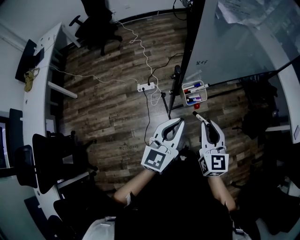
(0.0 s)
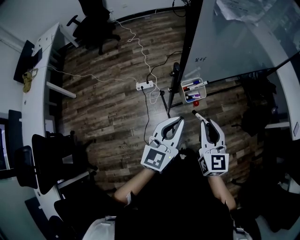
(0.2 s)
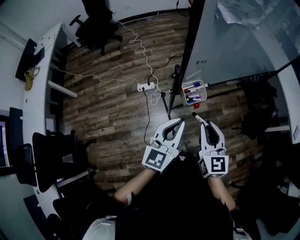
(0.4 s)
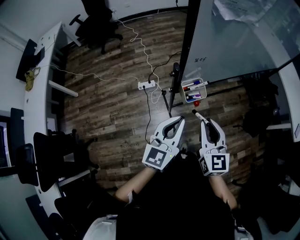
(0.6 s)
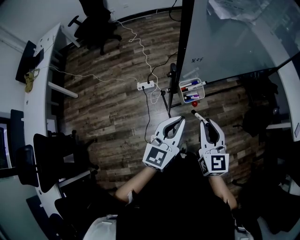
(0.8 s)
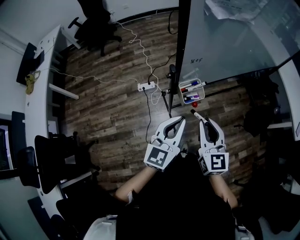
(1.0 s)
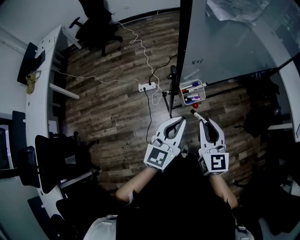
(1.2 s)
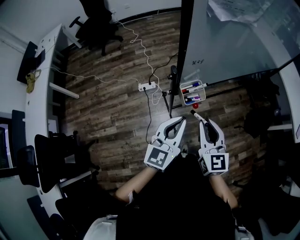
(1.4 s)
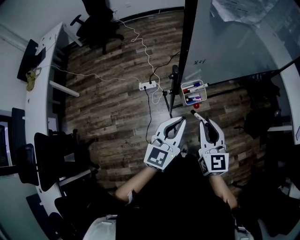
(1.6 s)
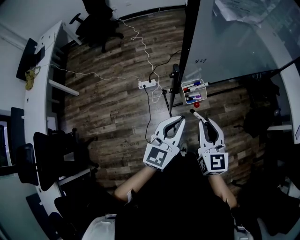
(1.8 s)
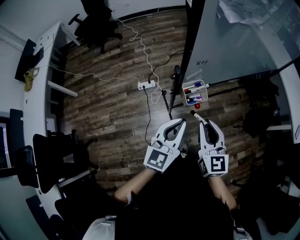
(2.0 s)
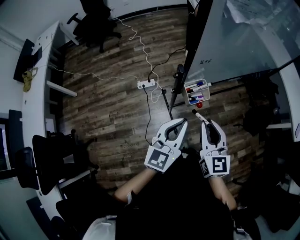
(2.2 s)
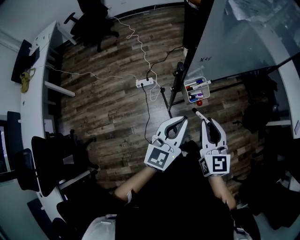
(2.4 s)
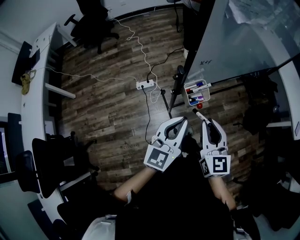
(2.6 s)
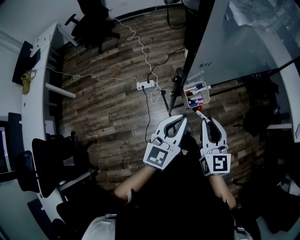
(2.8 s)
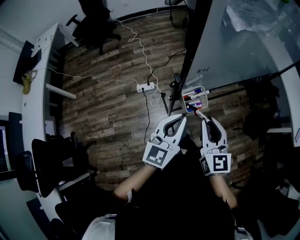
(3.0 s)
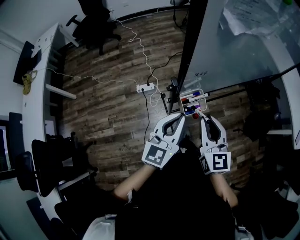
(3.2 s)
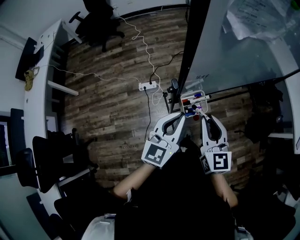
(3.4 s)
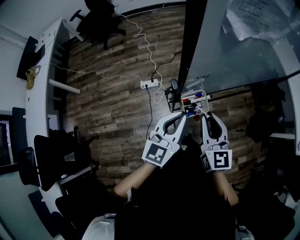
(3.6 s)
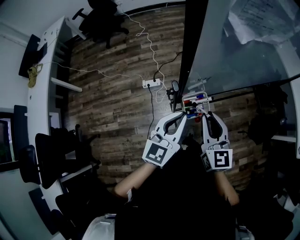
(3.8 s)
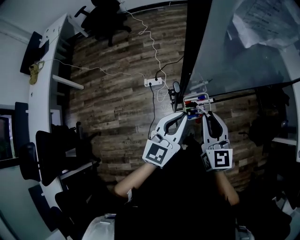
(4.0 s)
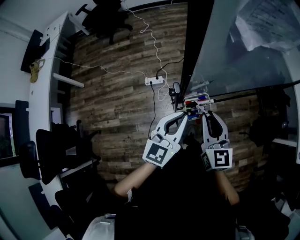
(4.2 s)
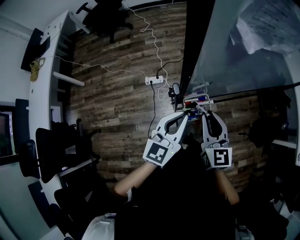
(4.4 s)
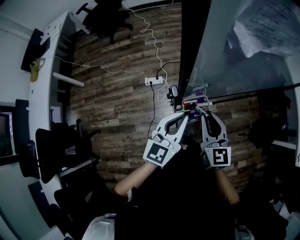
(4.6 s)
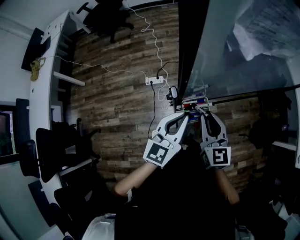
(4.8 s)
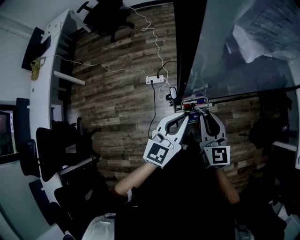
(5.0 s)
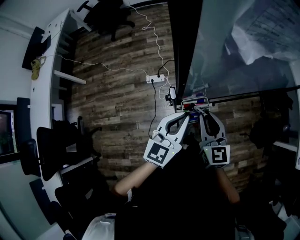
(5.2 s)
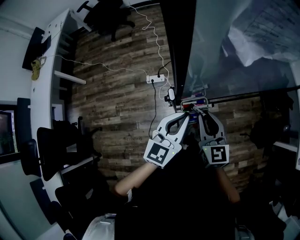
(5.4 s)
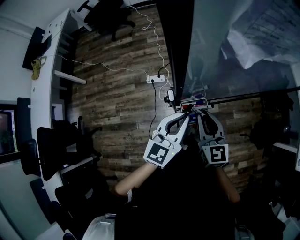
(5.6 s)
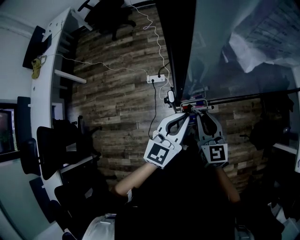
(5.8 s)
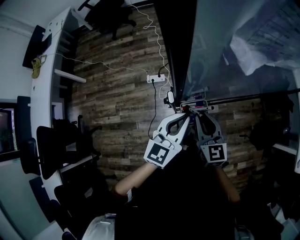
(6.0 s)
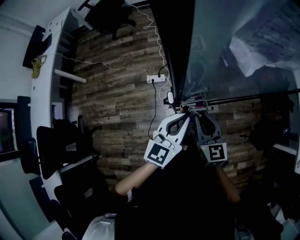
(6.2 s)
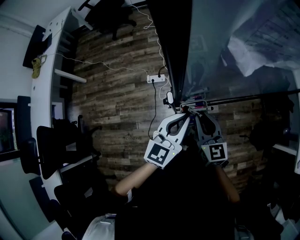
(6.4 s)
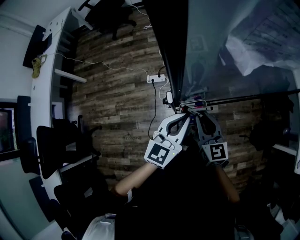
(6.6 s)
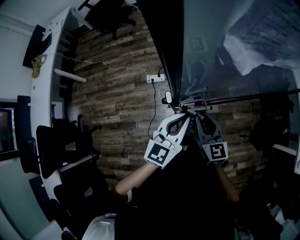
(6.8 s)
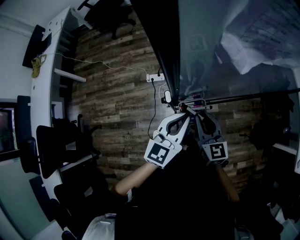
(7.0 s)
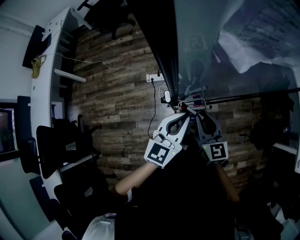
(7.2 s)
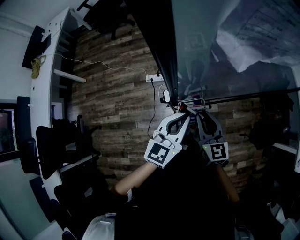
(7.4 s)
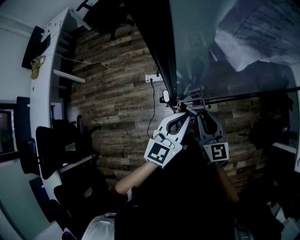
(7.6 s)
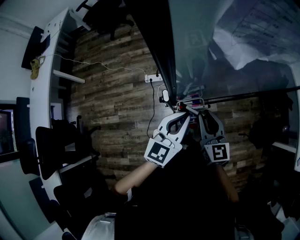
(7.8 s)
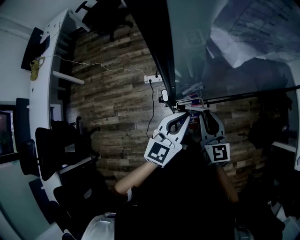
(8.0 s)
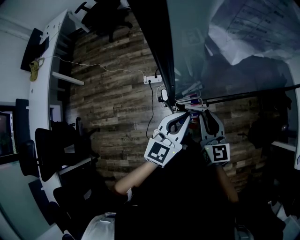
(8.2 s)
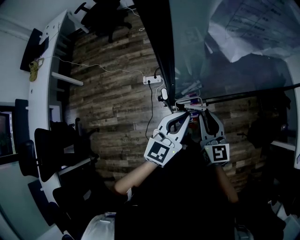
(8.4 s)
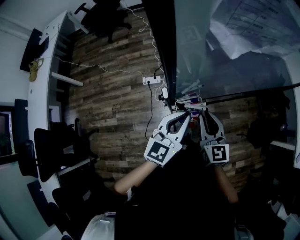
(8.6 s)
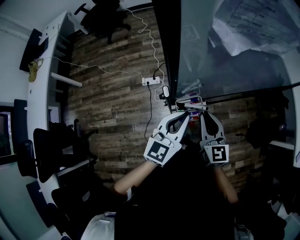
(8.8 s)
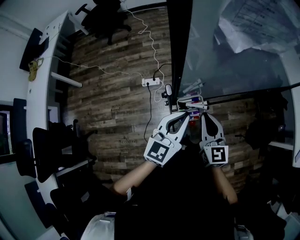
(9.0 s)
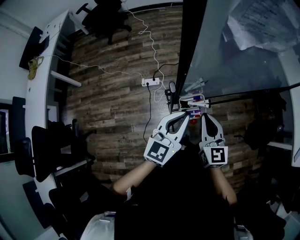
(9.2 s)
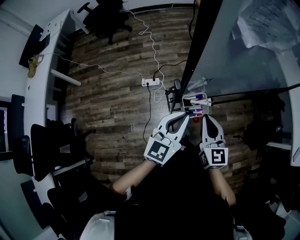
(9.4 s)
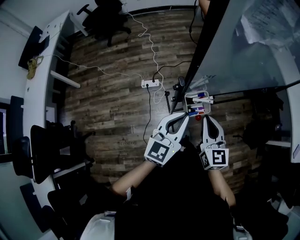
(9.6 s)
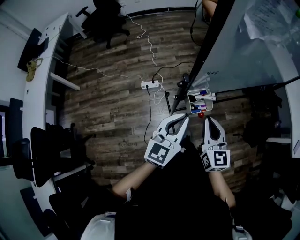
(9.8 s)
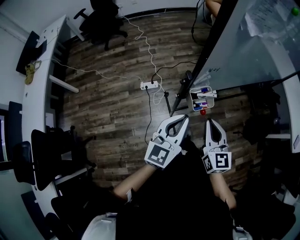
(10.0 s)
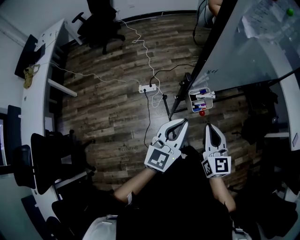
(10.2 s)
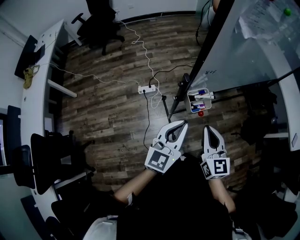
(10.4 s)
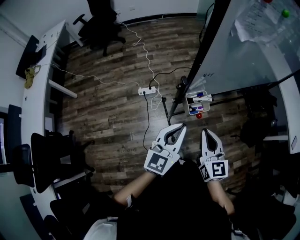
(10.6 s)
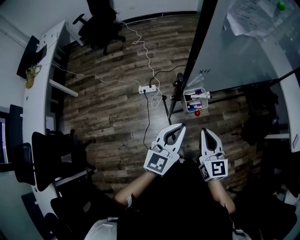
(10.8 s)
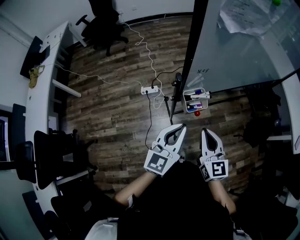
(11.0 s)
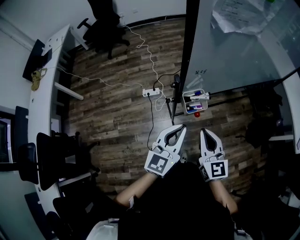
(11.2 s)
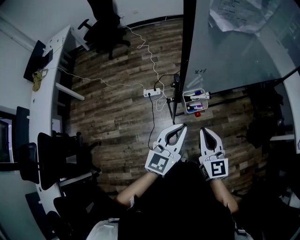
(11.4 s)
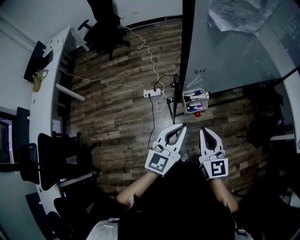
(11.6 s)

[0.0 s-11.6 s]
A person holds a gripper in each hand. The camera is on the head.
0.0 to 2.8 s: The grippers make only small movements.
2.8 to 4.4 s: The two grippers go roughly 10 cm forward.
4.4 to 8.8 s: The grippers make only small movements.
8.8 to 10.2 s: The left gripper travels backward and to the left by about 15 cm. Meanwhile the right gripper moves backward, approximately 10 cm.
10.2 to 11.6 s: The grippers make only small movements.

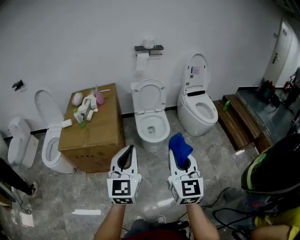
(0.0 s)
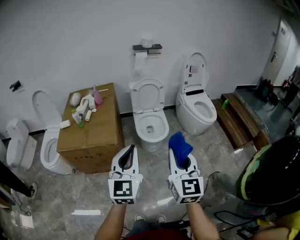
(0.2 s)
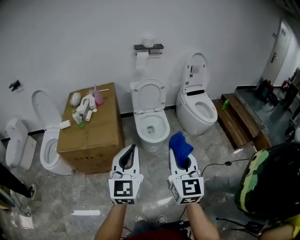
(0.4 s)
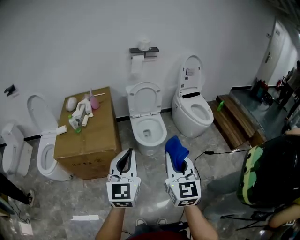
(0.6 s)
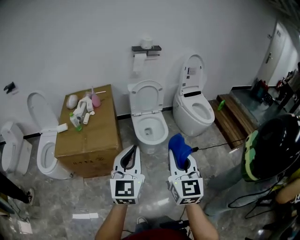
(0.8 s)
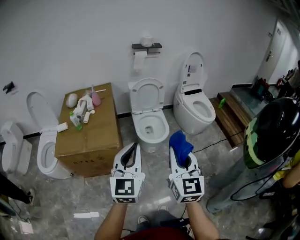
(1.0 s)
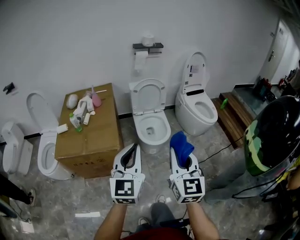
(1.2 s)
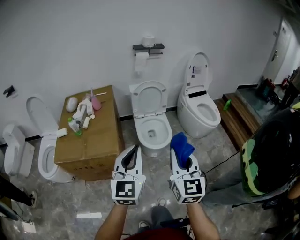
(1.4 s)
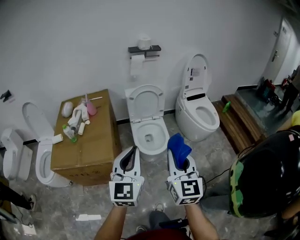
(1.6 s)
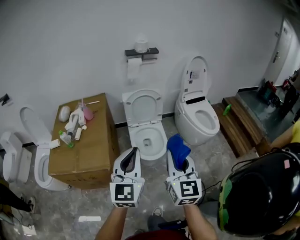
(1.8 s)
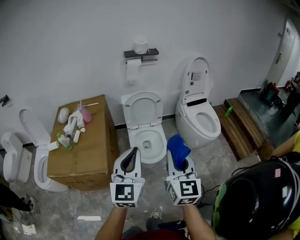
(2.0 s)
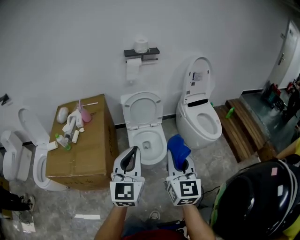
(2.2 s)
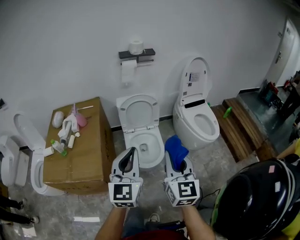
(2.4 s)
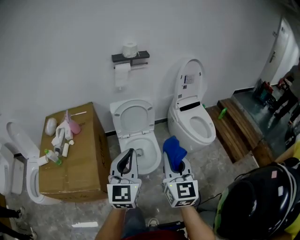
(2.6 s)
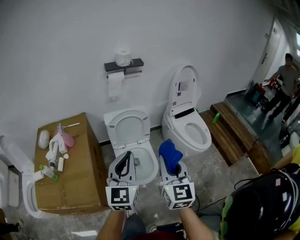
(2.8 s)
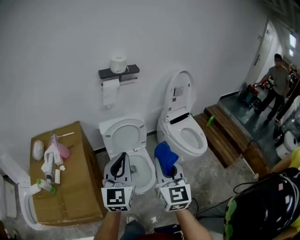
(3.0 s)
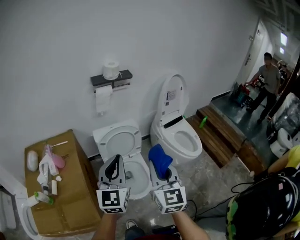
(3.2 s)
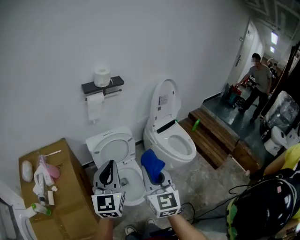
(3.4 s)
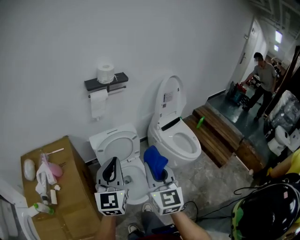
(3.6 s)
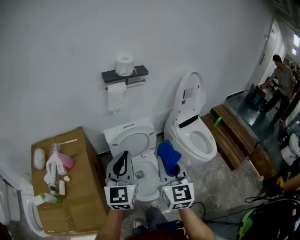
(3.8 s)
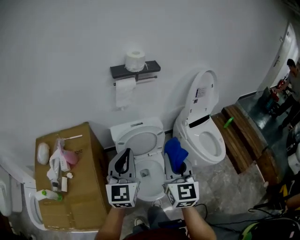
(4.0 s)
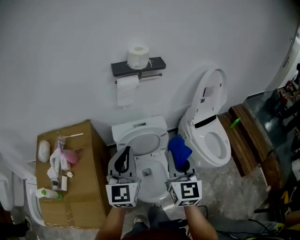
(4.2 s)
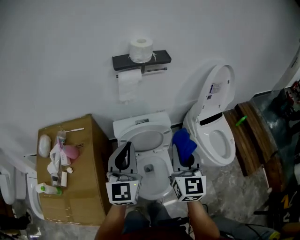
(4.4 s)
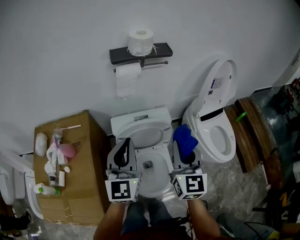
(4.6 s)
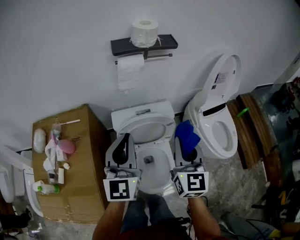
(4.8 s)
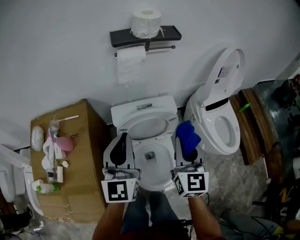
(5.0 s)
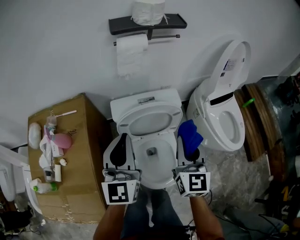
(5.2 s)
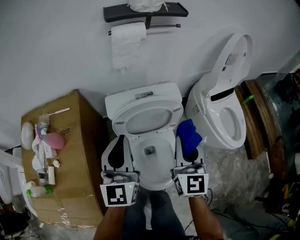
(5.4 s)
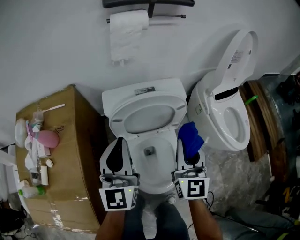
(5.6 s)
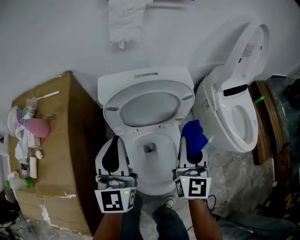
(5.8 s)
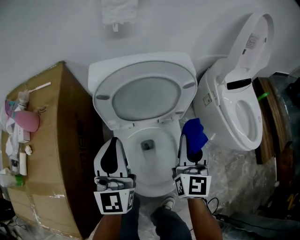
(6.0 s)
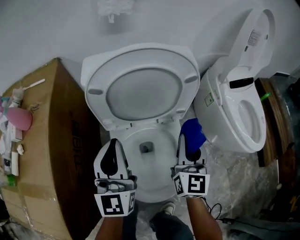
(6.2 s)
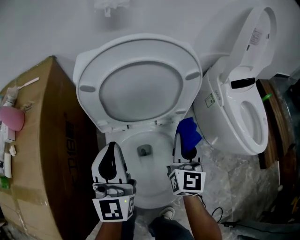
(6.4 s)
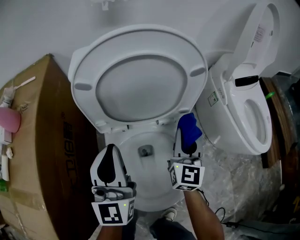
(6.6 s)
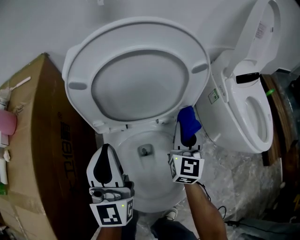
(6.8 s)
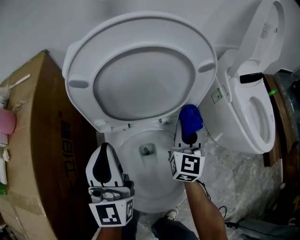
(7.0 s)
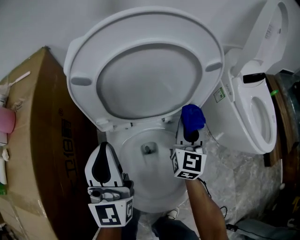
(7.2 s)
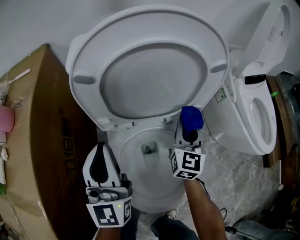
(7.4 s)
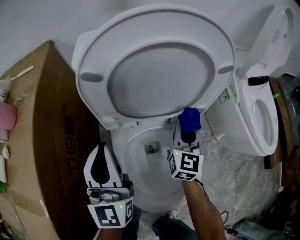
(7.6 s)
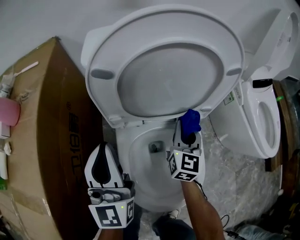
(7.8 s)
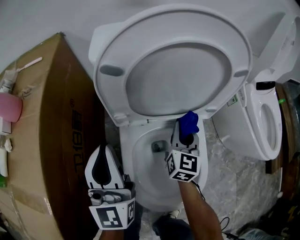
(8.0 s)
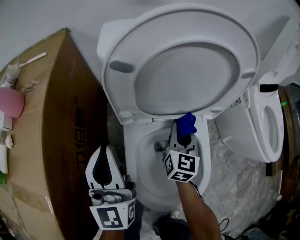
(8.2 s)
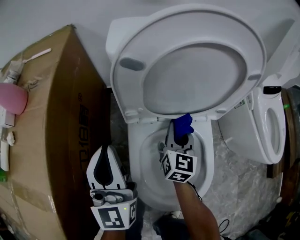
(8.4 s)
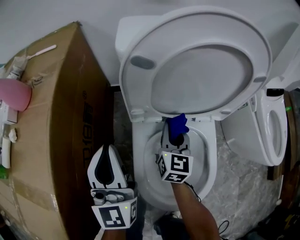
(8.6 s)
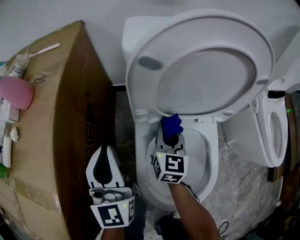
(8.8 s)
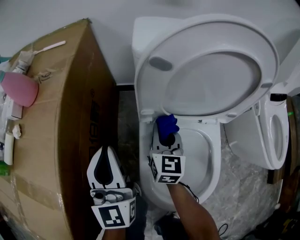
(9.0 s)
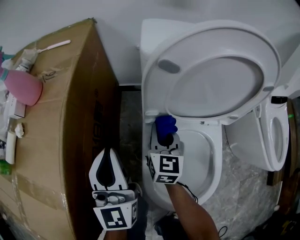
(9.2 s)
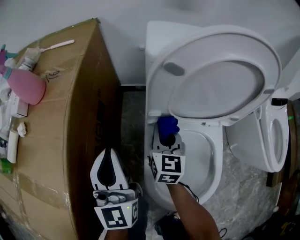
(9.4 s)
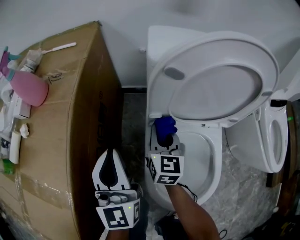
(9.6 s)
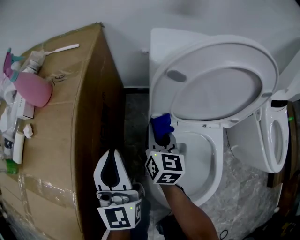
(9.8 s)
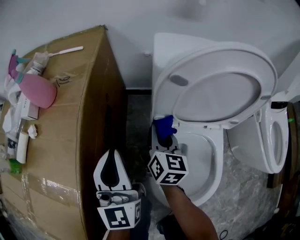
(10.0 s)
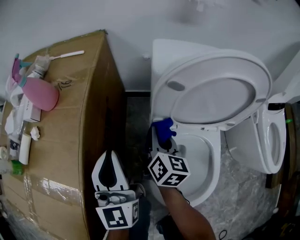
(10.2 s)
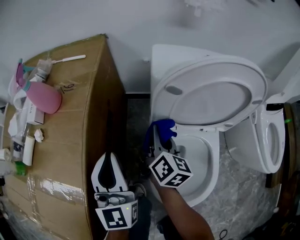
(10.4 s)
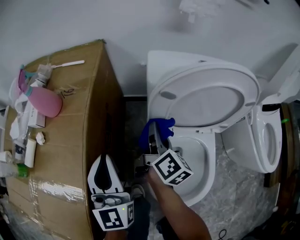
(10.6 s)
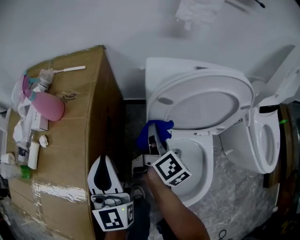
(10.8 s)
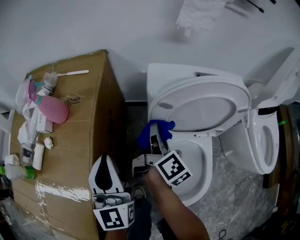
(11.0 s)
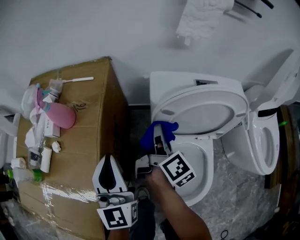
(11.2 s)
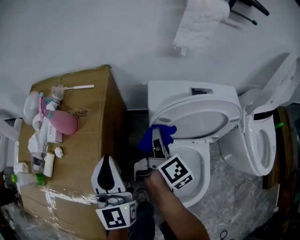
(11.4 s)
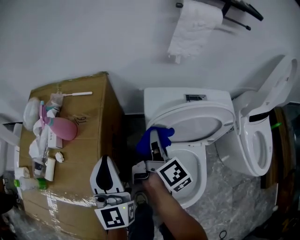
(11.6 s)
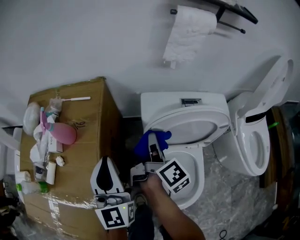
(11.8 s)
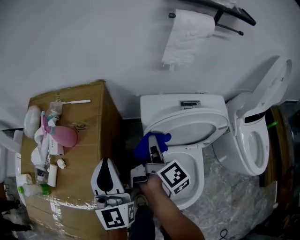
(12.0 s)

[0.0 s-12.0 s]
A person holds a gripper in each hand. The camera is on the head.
0.0 to 1.6 s: The grippers both shift forward by some 20 cm.
1.6 to 3.0 s: Both grippers travel together forward, some 30 cm.
3.0 to 4.4 s: Both grippers move forward, about 25 cm.
4.4 to 6.0 s: Both grippers move downward, approximately 35 cm.
6.0 to 7.6 s: The left gripper goes roughly 10 cm downward; the right gripper moves downward and forward, roughly 20 cm.
7.6 to 9.0 s: The left gripper moves to the left, approximately 10 cm, while the right gripper is displaced to the left by some 20 cm, and rotates approximately 20 degrees.
9.0 to 10.4 s: The two grippers go some 10 cm upward. The right gripper changes its angle by some 40 degrees.
10.4 to 12.0 s: Both grippers travel together upward, about 15 cm. The right gripper turns by some 40 degrees.

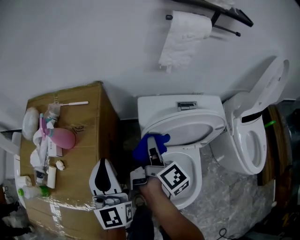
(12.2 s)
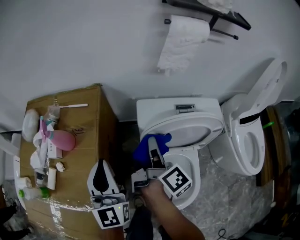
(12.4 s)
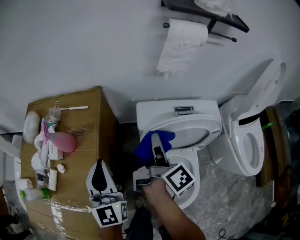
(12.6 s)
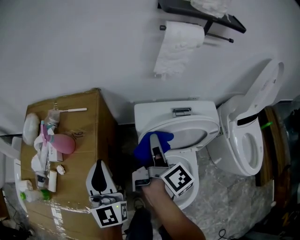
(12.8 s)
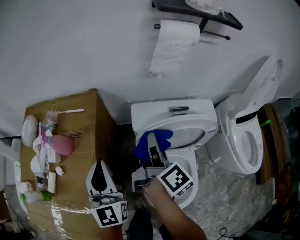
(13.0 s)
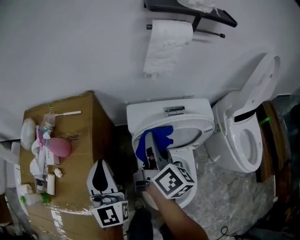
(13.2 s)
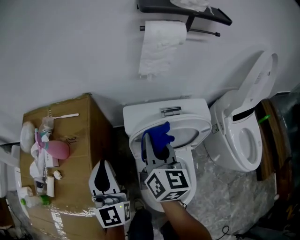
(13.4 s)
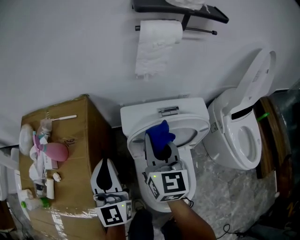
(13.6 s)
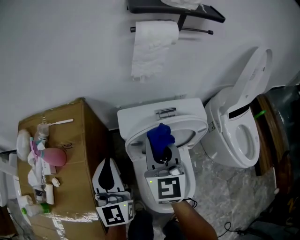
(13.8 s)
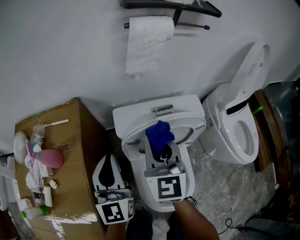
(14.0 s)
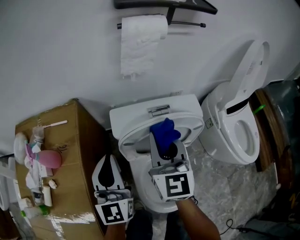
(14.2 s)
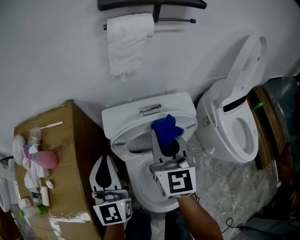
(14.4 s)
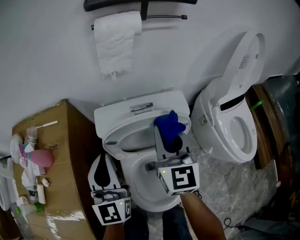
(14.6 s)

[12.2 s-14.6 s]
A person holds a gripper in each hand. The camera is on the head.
12.2 to 13.4 s: The right gripper travels upward by roughly 10 cm, and twists approximately 50 degrees counterclockwise, seen from behind.
13.4 to 14.6 s: The two grippers go approximately 10 cm to the right. The right gripper changes its angle by some 30 degrees.
